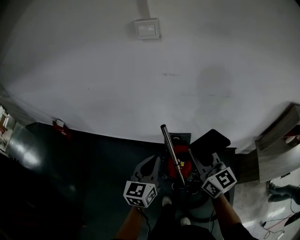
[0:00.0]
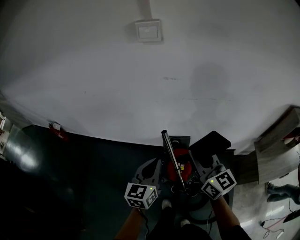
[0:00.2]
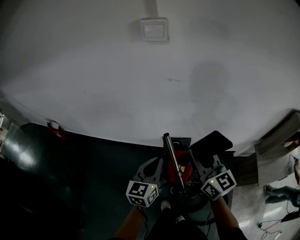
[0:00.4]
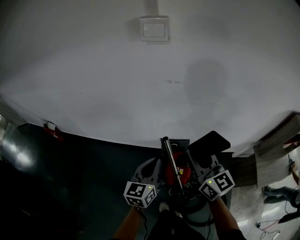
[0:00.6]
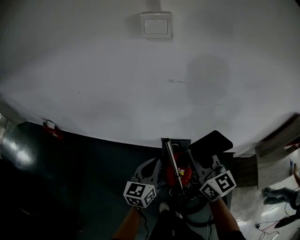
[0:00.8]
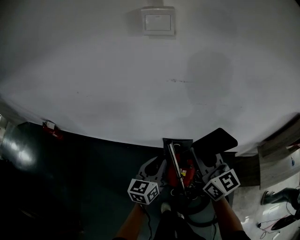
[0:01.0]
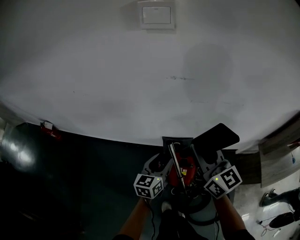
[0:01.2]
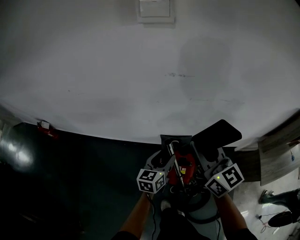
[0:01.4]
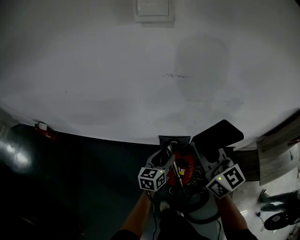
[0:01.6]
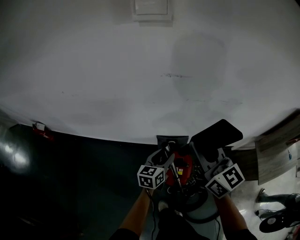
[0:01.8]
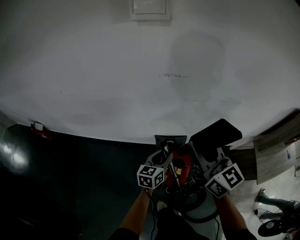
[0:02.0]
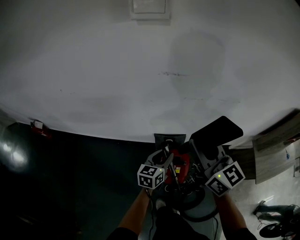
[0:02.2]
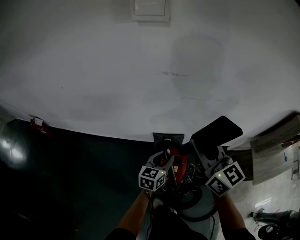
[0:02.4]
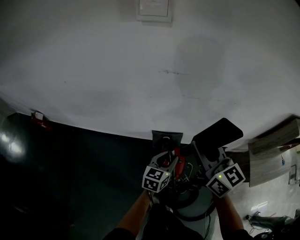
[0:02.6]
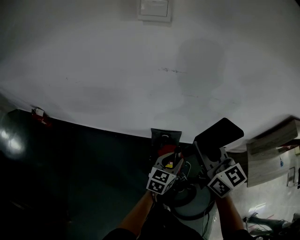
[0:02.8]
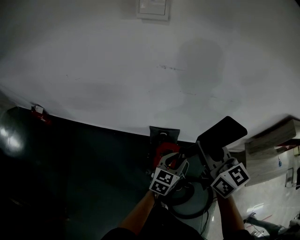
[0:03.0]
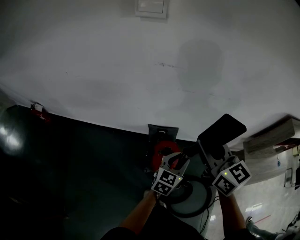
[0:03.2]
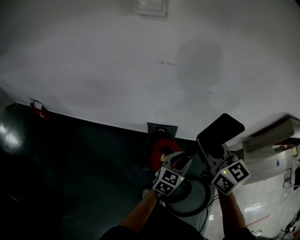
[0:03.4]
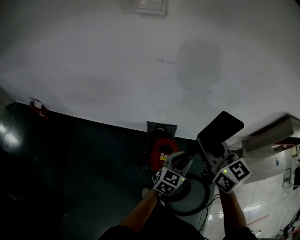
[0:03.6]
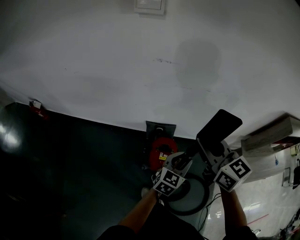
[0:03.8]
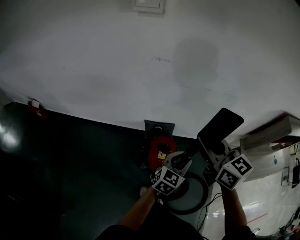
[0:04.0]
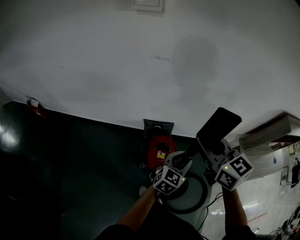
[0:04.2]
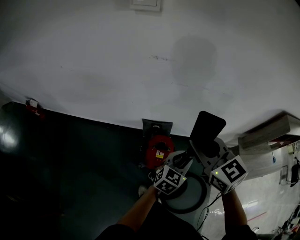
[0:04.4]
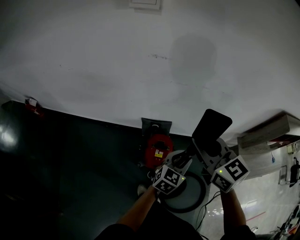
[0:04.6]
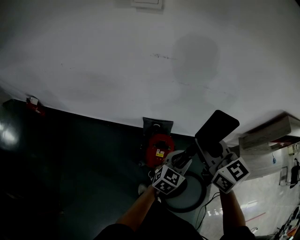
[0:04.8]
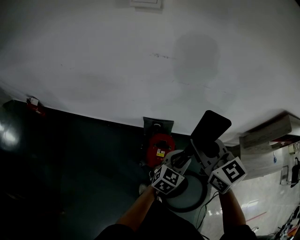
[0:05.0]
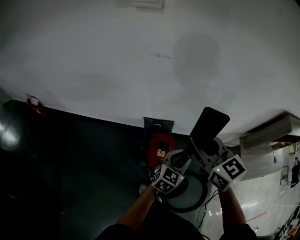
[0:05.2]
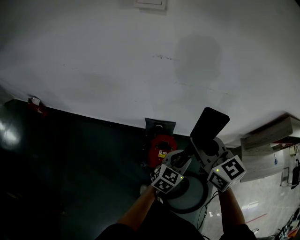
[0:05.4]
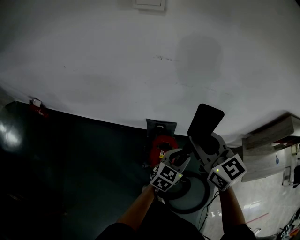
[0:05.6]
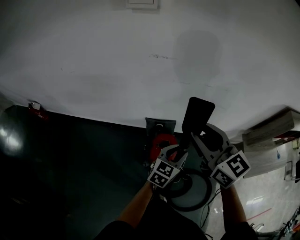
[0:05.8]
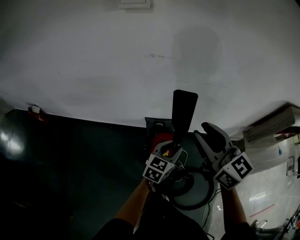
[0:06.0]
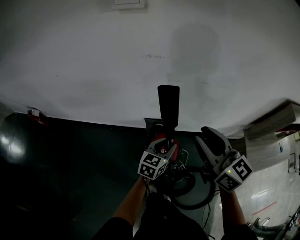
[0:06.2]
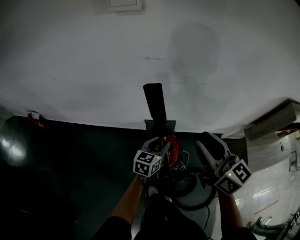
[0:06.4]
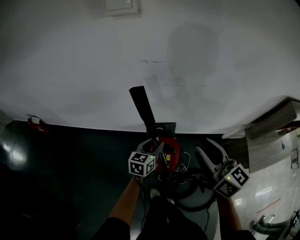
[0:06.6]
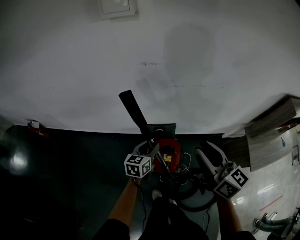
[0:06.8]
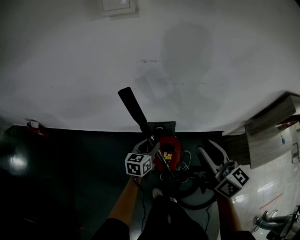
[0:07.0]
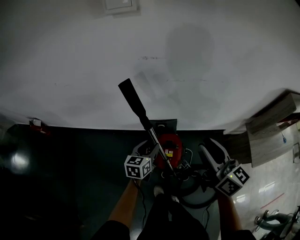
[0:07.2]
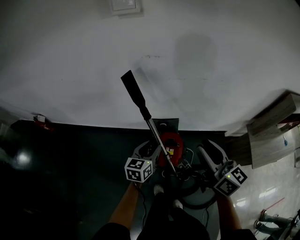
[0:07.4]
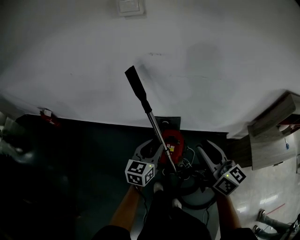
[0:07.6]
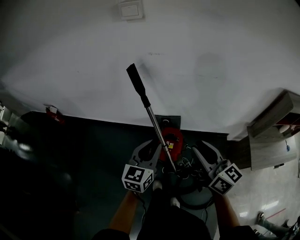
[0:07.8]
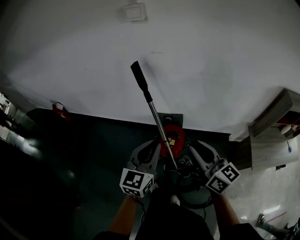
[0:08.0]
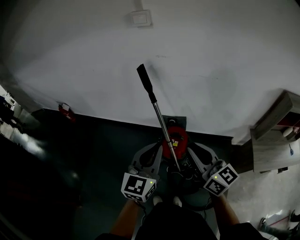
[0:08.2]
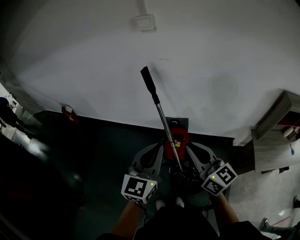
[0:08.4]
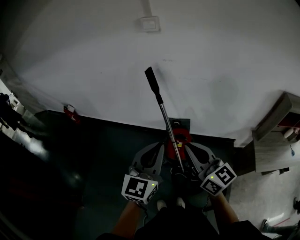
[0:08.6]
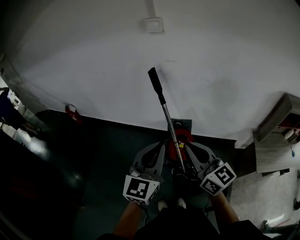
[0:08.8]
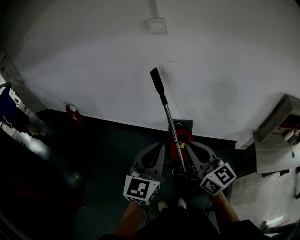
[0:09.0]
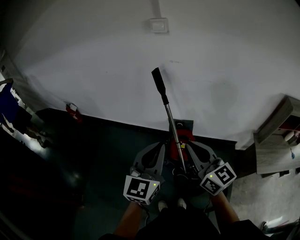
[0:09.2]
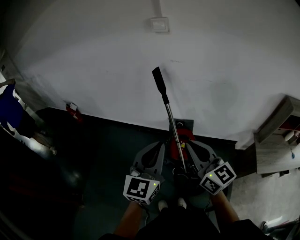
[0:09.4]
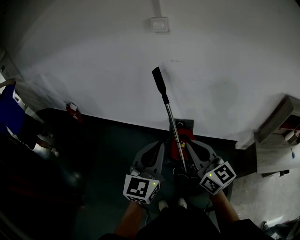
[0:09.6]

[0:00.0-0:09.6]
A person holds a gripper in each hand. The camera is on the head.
0:00.0 to 0:01.6: The right gripper shifts about 15 cm forward. The left gripper travels downward and forward by about 25 cm, and opens up.
0:01.6 to 0:03.2: The left gripper shifts about 20 cm to the right, backward and upward. Meanwhile the right gripper heads to the right and backward, covering some 10 cm.
0:03.2 to 0:04.8: The left gripper shifts by about 5 cm.
0:04.8 to 0:06.4: The left gripper is displaced to the left and forward by some 15 cm. Meanwhile the right gripper swivels some 20 degrees.
0:06.4 to 0:08.0: The left gripper goes roughly 30 cm backward and upward, rotates some 30 degrees, and closes, while the right gripper goes roughly 20 cm backward.
0:08.0 to 0:09.6: The left gripper heads upward, backward and to the left, covering roughly 15 cm. The right gripper is displaced to the left and upward by roughly 10 cm, and closes.

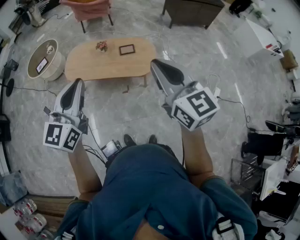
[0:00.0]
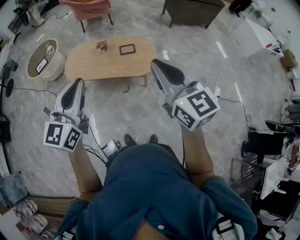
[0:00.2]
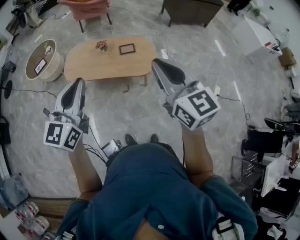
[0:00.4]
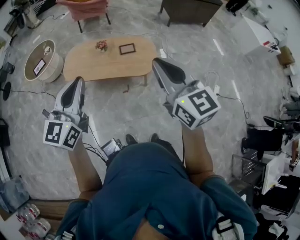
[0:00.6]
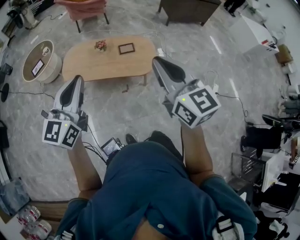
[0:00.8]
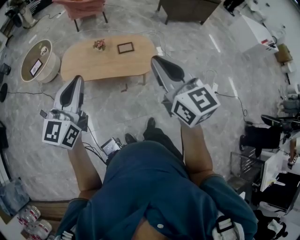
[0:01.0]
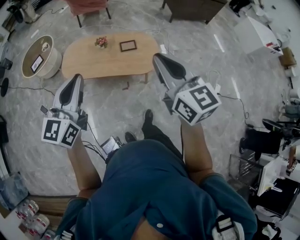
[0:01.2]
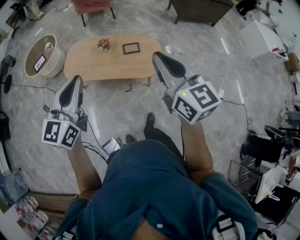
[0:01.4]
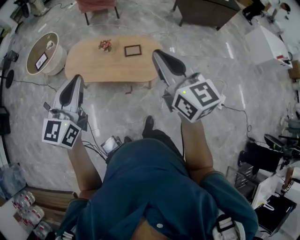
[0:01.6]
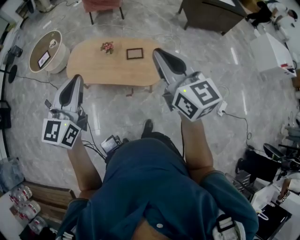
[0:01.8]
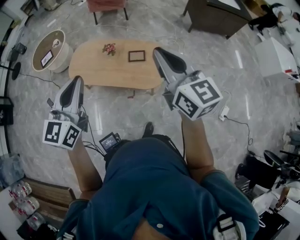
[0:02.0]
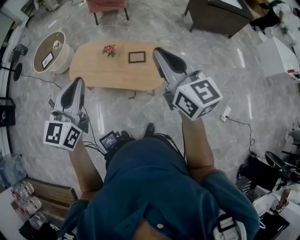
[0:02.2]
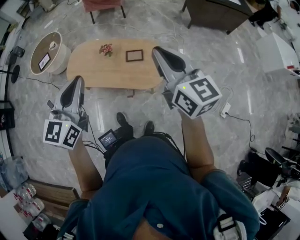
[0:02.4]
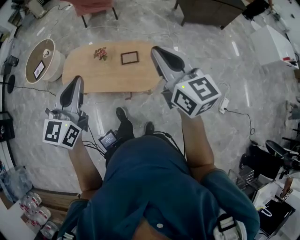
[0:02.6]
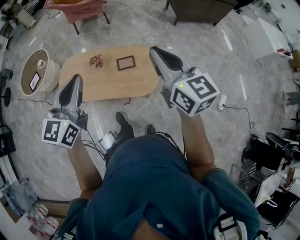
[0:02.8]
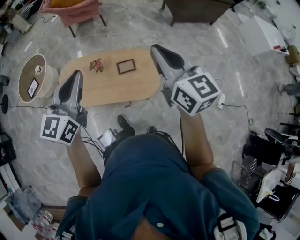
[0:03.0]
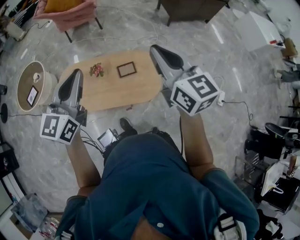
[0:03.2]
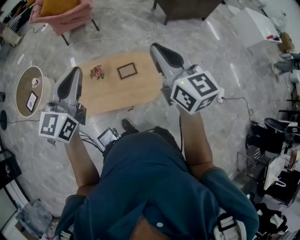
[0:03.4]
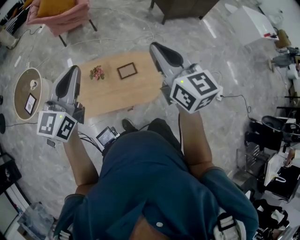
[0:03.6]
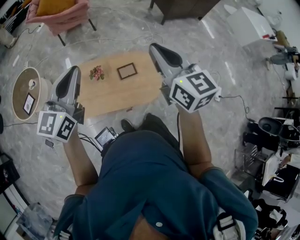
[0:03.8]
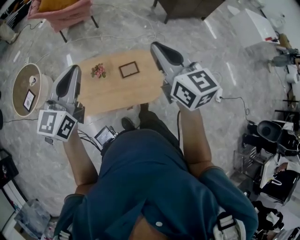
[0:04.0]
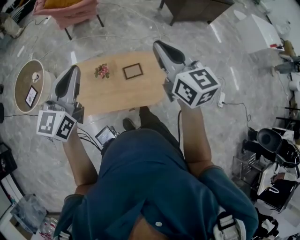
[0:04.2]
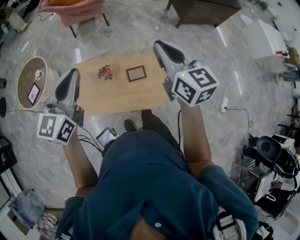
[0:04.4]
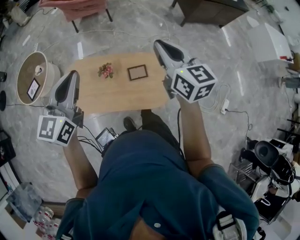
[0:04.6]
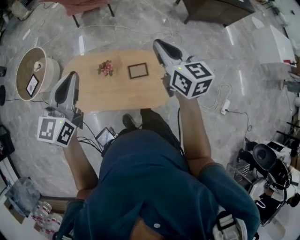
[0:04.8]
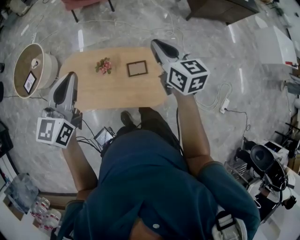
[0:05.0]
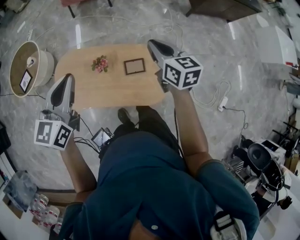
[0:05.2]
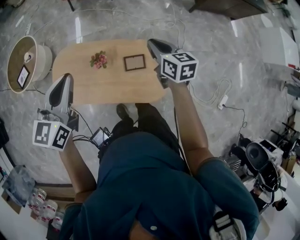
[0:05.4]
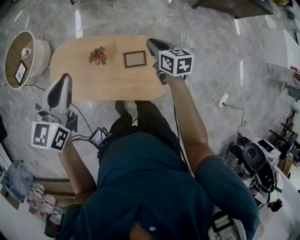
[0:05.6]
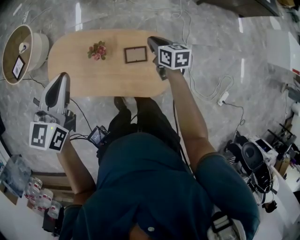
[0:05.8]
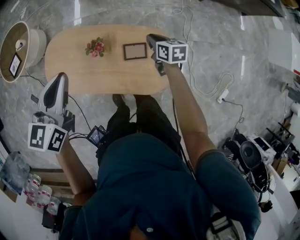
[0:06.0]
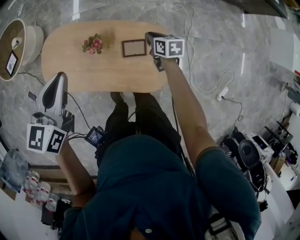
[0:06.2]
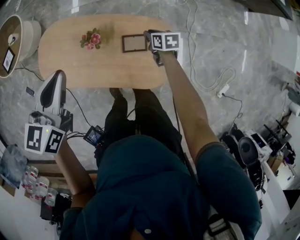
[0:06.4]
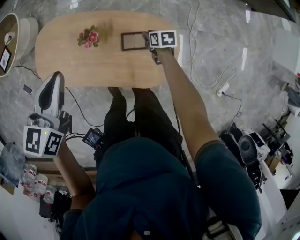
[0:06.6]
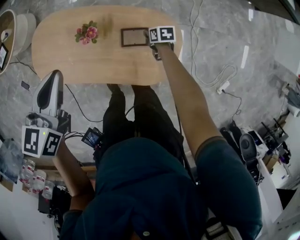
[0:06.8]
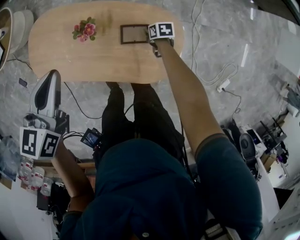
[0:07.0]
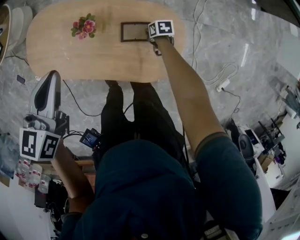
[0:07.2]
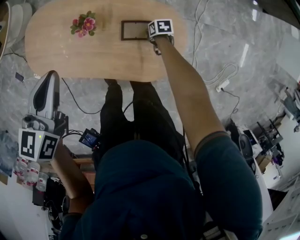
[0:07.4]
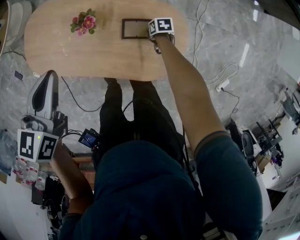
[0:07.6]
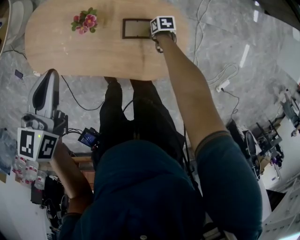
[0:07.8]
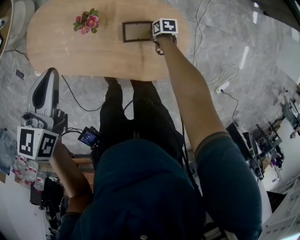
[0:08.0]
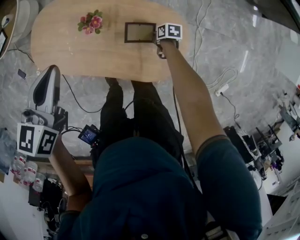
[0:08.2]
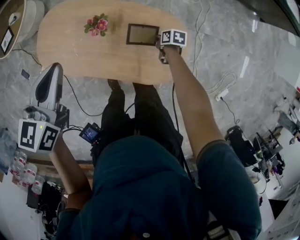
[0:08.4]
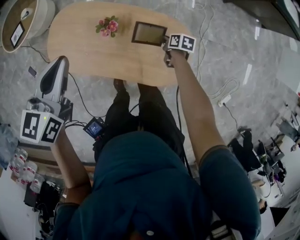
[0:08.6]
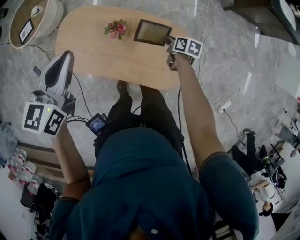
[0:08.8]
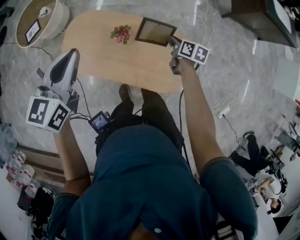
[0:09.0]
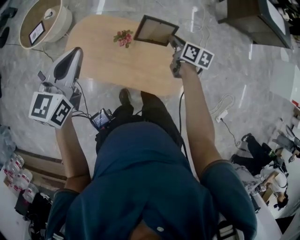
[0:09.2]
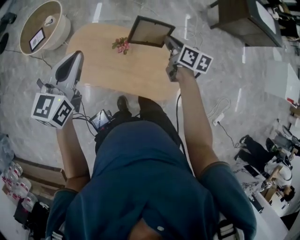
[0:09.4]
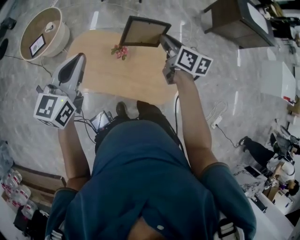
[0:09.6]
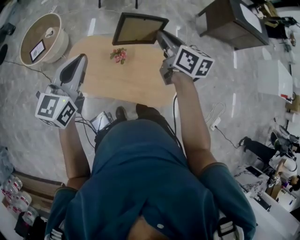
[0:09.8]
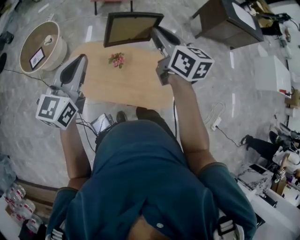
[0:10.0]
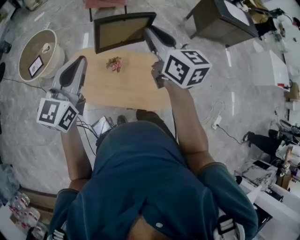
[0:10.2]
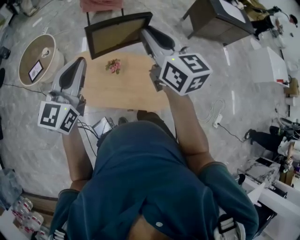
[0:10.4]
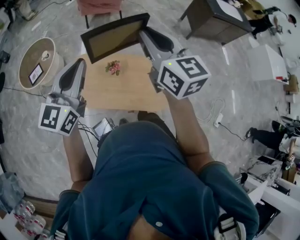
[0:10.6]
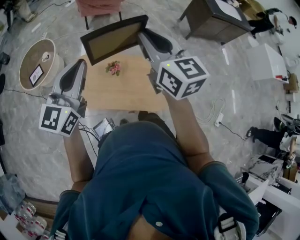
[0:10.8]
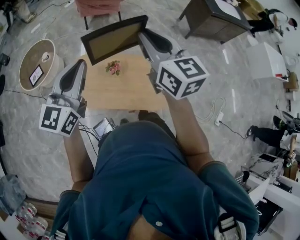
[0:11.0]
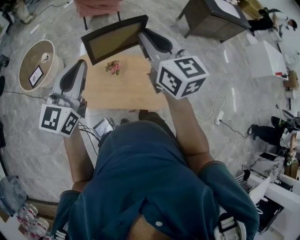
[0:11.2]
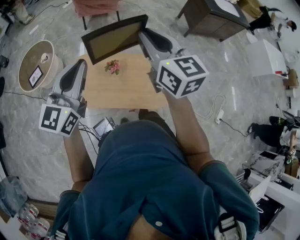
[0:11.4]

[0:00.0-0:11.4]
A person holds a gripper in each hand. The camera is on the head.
0:00.0 to 0:01.4: Both grippers travel together forward, approximately 10 cm.
0:01.4 to 0:02.8: Both grippers move forward and to the right, some 25 cm.
0:02.8 to 0:04.2: Both grippers travel together forward and to the left, roughly 20 cm.
0:04.2 to 0:05.6: The right gripper goes some 40 cm downward and forward, and turns by some 30 degrees; the left gripper shifts about 20 cm downward and forward, and changes its angle by some 20 degrees.
0:05.6 to 0:07.2: The left gripper moves downward, roughly 20 cm. The right gripper shifts some 40 cm downward, angles its fingers downward, by approximately 30 degrees, and opens.
0:07.2 to 0:08.6: Both grippers move upward, some 10 cm.
0:08.6 to 0:10.0: The left gripper heads upward, covering about 20 cm, and rotates approximately 20 degrees, while the right gripper shifts some 60 cm upward, and points its fingers approximately 40 degrees further upward.
0:10.0 to 0:11.4: The left gripper shifts by about 5 cm. The right gripper goes about 10 cm backward and upward.

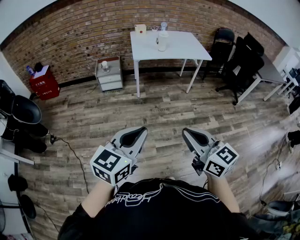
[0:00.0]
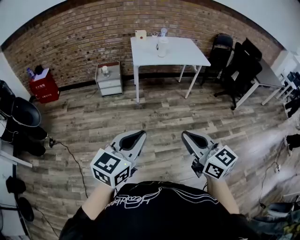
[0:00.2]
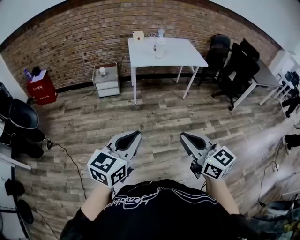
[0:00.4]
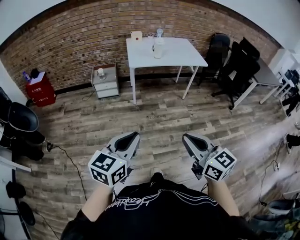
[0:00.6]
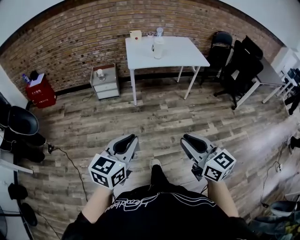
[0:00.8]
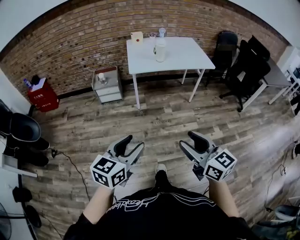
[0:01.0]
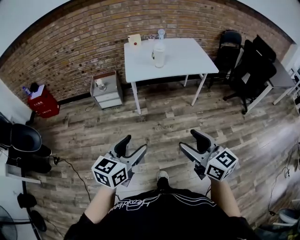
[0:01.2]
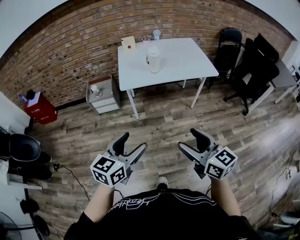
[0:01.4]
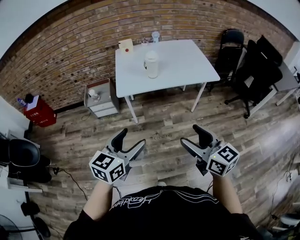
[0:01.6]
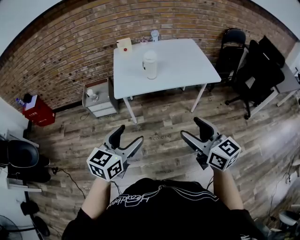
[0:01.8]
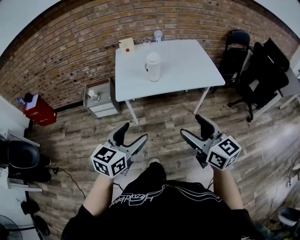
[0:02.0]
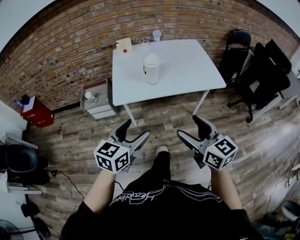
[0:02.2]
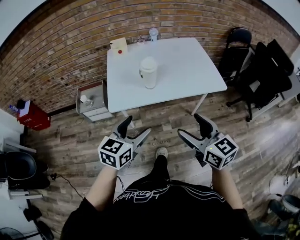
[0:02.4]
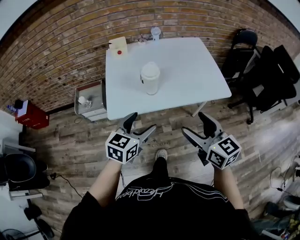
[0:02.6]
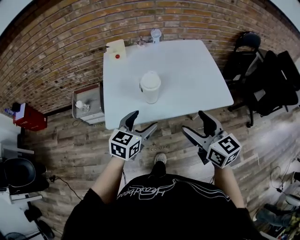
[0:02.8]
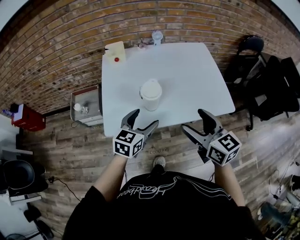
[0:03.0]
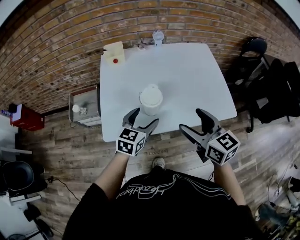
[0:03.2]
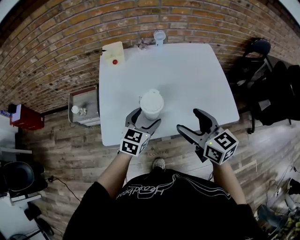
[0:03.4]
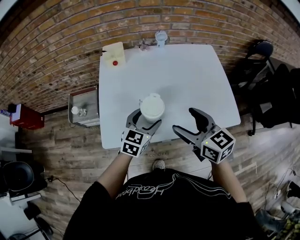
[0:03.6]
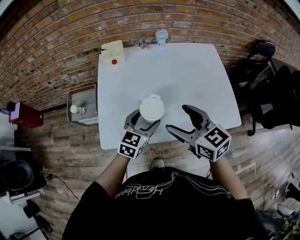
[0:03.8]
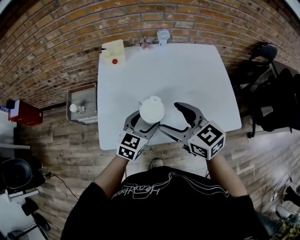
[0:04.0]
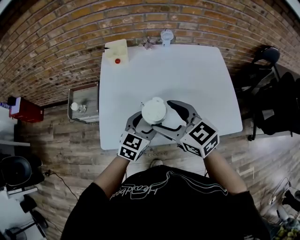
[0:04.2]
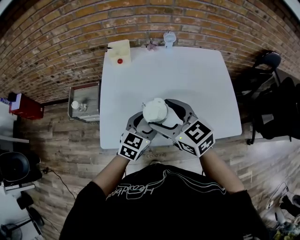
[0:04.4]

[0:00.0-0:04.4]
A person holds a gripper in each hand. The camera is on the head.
0:00.0 to 0:01.4: The two grippers go some 30 cm forward. The right gripper opens up; the left gripper opens up.
0:01.4 to 0:03.0: Both grippers are carried forward, about 50 cm.
0:03.0 to 0:04.4: The right gripper travels forward and to the left by about 20 cm, and swivels roughly 30 degrees, while the left gripper moves forward, some 10 cm.
